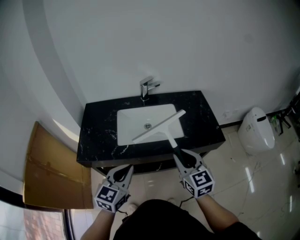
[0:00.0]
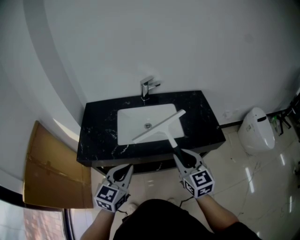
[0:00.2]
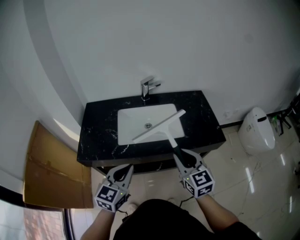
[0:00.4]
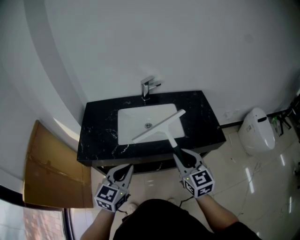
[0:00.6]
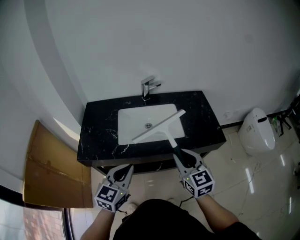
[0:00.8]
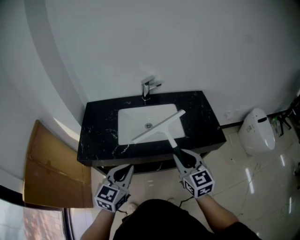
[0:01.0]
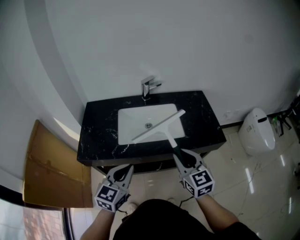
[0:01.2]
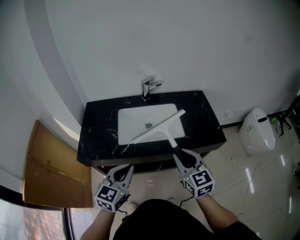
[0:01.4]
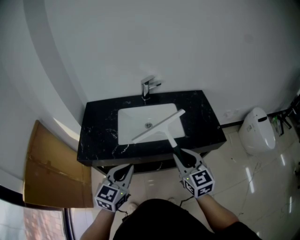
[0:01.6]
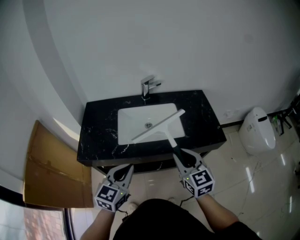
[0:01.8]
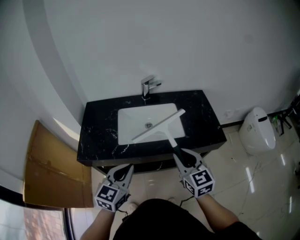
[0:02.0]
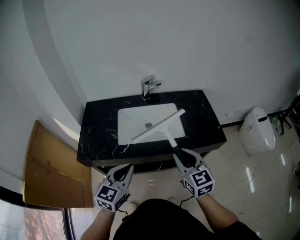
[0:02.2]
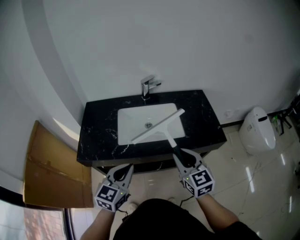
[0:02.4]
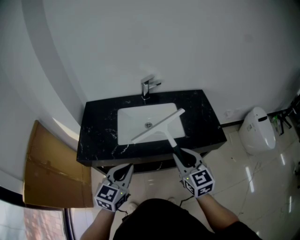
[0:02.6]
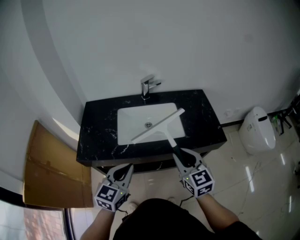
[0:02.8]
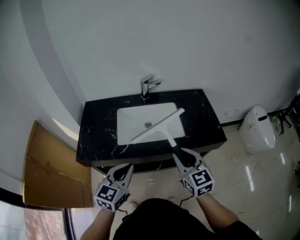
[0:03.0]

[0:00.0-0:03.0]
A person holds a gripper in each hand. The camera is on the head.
0:00.0 to 0:03.0: The two grippers keep their place.

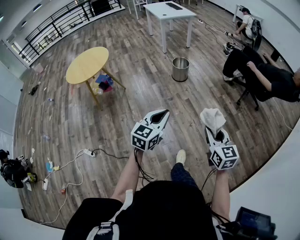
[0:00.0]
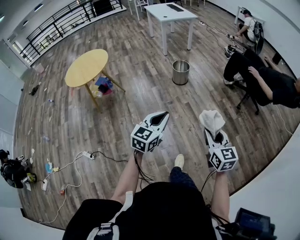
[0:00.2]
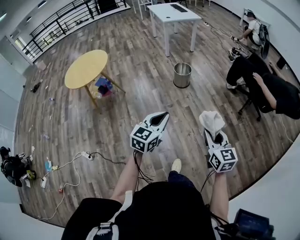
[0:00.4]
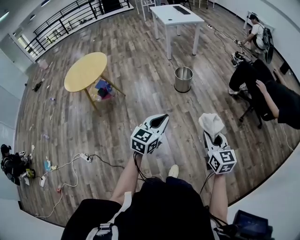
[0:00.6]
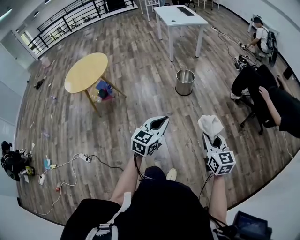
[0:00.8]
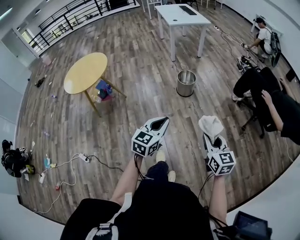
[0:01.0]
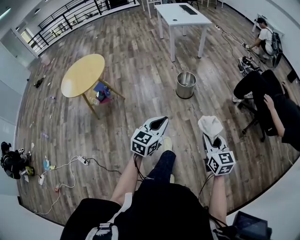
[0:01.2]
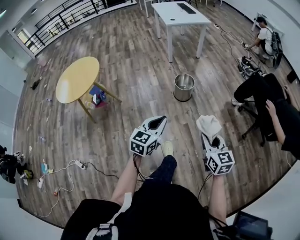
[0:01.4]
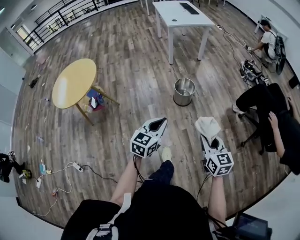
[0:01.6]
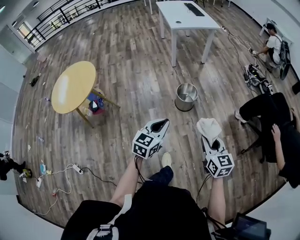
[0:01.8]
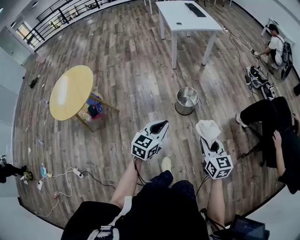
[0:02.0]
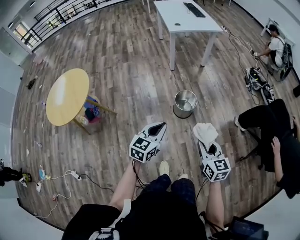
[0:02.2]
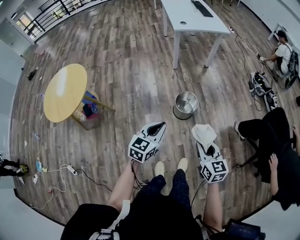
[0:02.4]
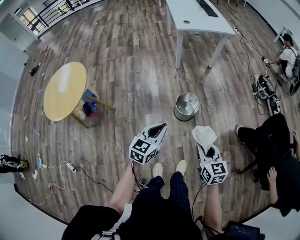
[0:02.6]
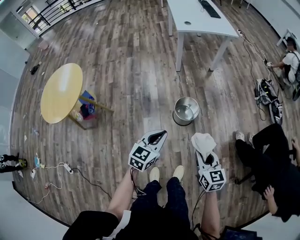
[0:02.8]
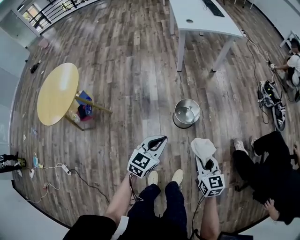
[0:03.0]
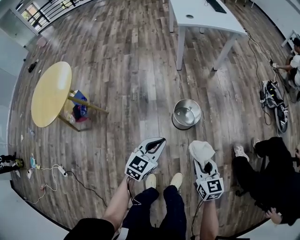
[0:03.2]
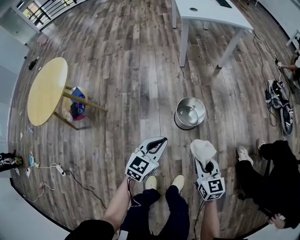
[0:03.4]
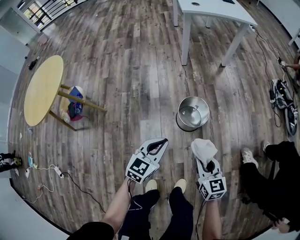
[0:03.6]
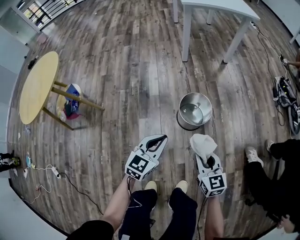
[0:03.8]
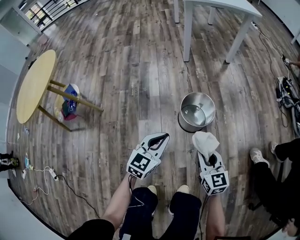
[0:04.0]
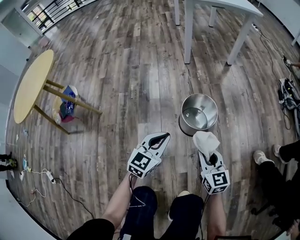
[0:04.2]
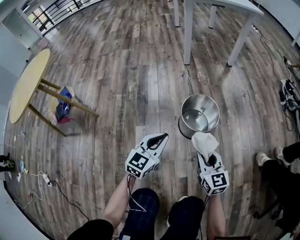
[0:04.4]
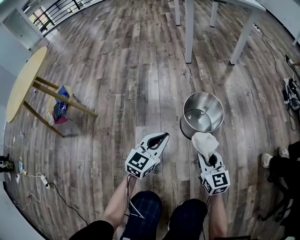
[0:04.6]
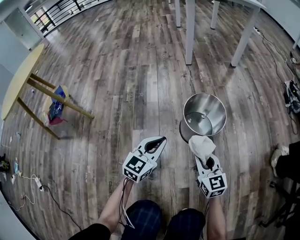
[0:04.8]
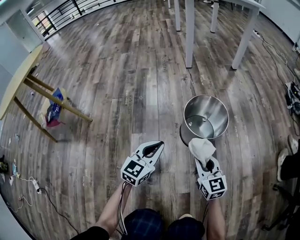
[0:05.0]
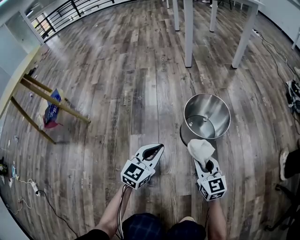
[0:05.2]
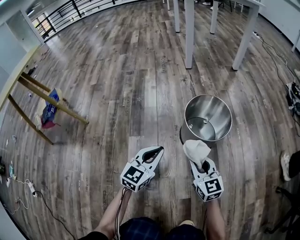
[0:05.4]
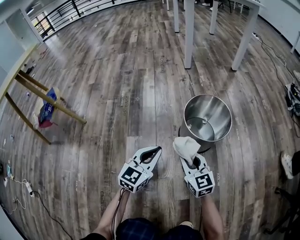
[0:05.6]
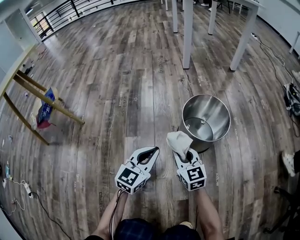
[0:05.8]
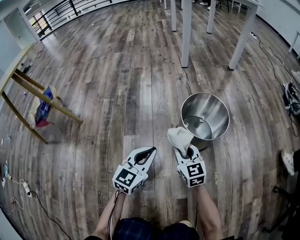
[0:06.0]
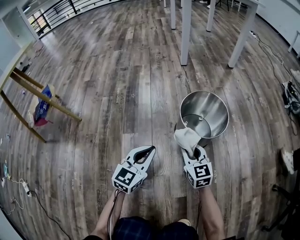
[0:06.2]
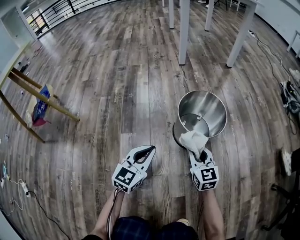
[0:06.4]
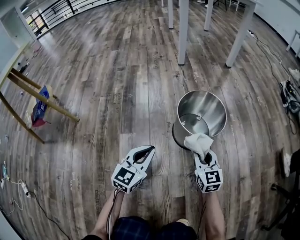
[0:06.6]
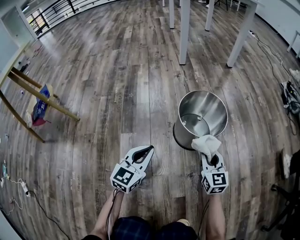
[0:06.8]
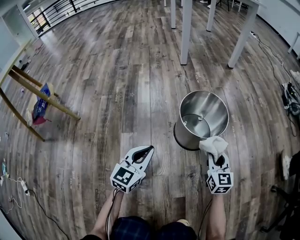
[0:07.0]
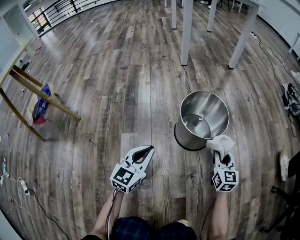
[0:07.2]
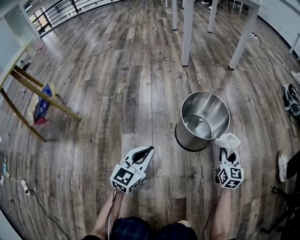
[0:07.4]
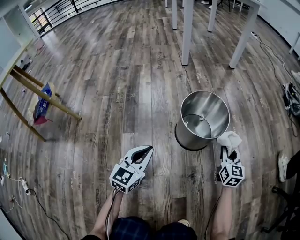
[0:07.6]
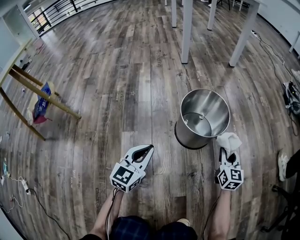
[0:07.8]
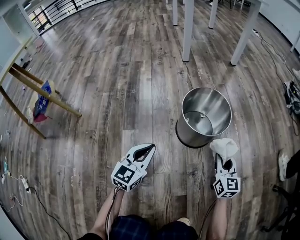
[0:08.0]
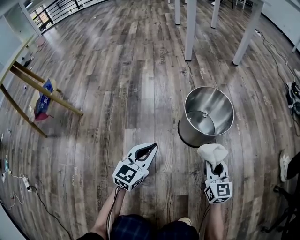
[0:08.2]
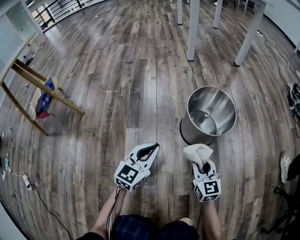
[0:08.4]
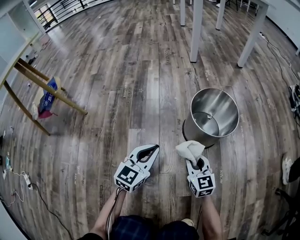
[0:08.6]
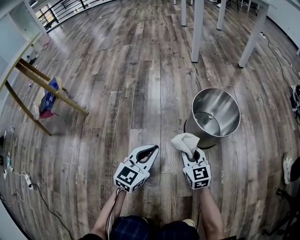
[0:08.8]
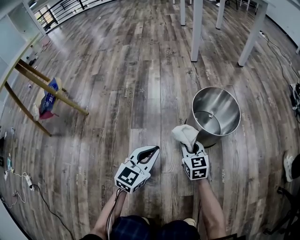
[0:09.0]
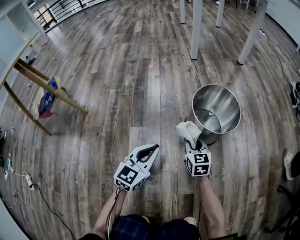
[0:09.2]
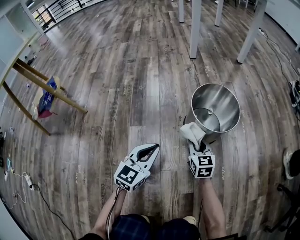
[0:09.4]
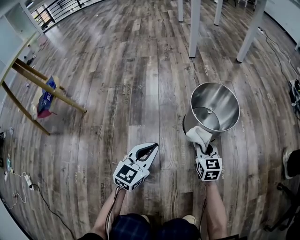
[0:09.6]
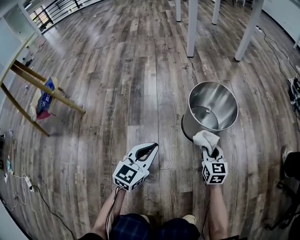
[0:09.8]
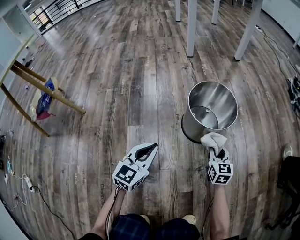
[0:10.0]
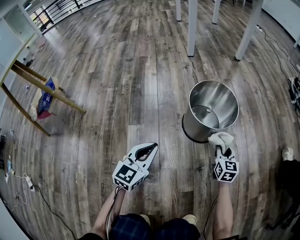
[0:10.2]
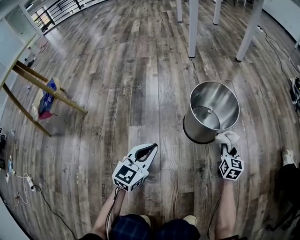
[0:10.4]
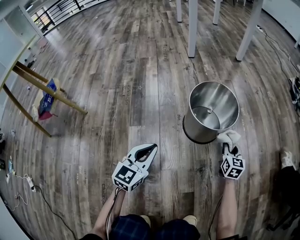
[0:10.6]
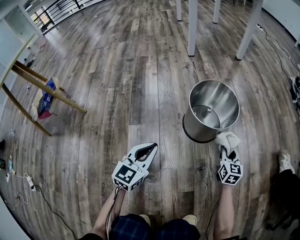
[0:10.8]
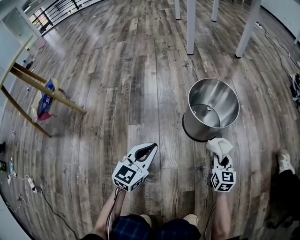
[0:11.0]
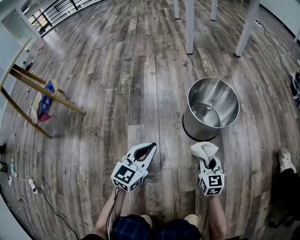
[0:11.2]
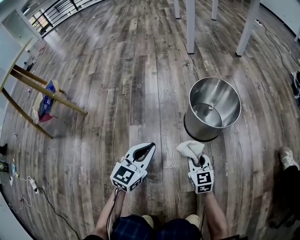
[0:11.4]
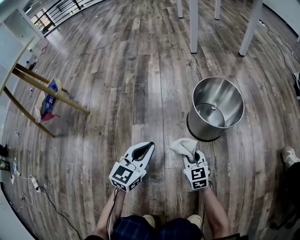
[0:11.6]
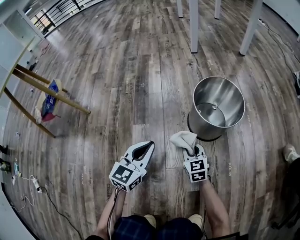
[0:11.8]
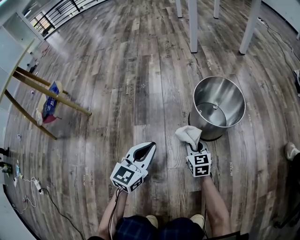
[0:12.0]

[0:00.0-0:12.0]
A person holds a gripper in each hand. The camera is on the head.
0:00.0 to 0:01.6: Both grippers are carried forward, roughly 40 cm.
0:01.6 to 0:03.0: The grippers both shift forward and downward by some 30 cm.
0:03.0 to 0:04.4: The two grippers go roughly 35 cm downward.
0:04.4 to 0:06.0: The left gripper travels downward by some 15 cm; the right gripper moves downward, to the left and forward, roughly 25 cm.
0:06.0 to 0:07.6: The right gripper heads to the right, covering some 25 cm, and changes its angle by some 30 degrees.
0:07.6 to 0:09.0: The right gripper moves to the left, some 25 cm, and turns by about 30 degrees.
0:09.0 to 0:10.4: The right gripper goes some 25 cm to the right, and turns by some 30 degrees.
0:10.4 to 0:12.0: The right gripper travels to the left by about 20 cm, and swivels some 20 degrees.

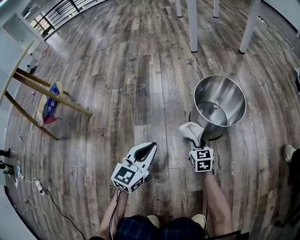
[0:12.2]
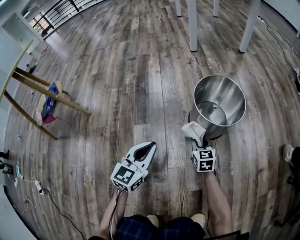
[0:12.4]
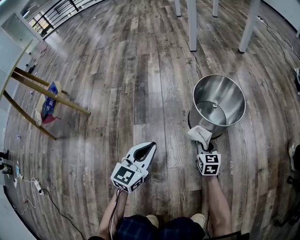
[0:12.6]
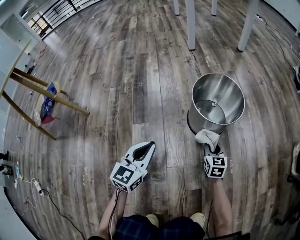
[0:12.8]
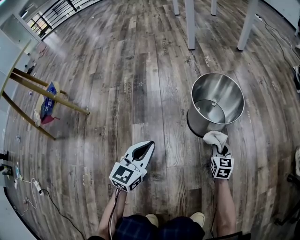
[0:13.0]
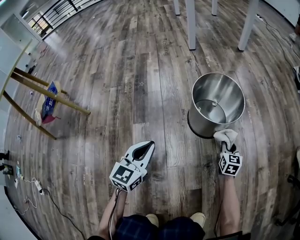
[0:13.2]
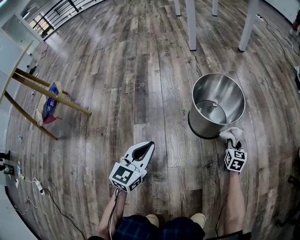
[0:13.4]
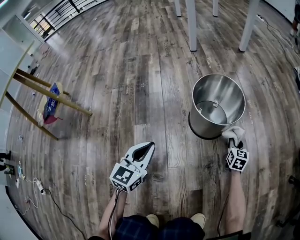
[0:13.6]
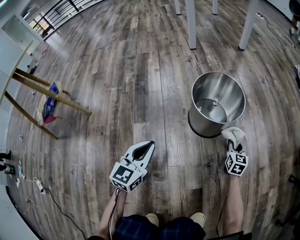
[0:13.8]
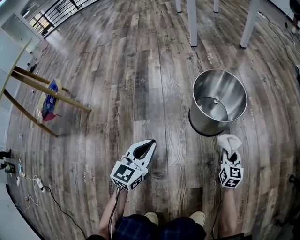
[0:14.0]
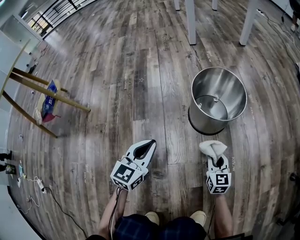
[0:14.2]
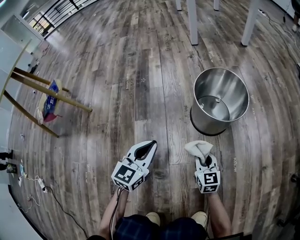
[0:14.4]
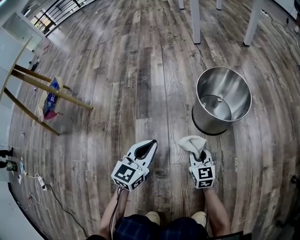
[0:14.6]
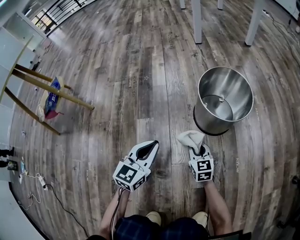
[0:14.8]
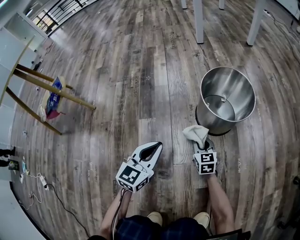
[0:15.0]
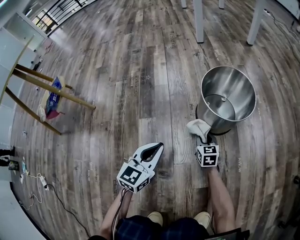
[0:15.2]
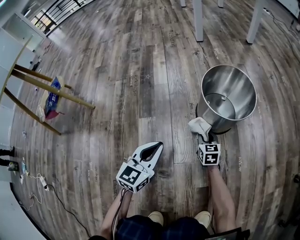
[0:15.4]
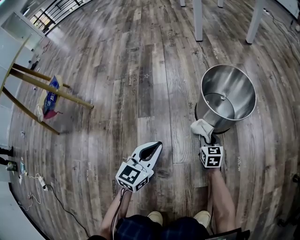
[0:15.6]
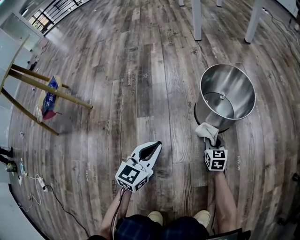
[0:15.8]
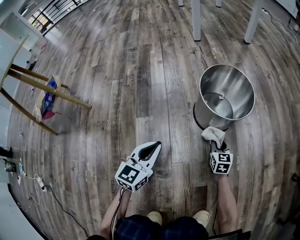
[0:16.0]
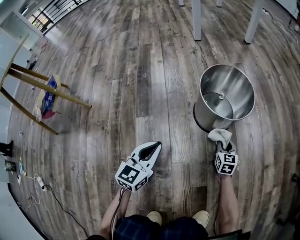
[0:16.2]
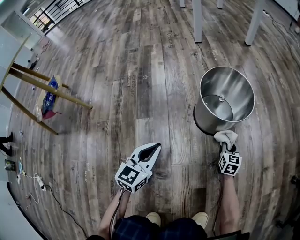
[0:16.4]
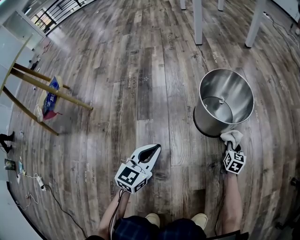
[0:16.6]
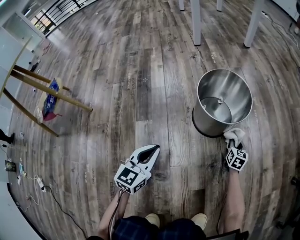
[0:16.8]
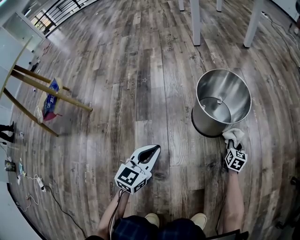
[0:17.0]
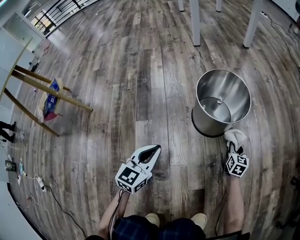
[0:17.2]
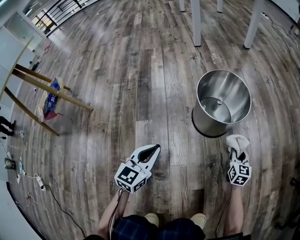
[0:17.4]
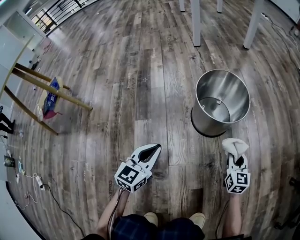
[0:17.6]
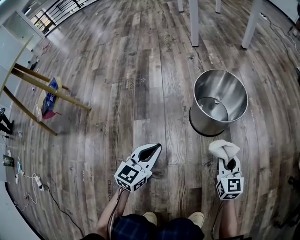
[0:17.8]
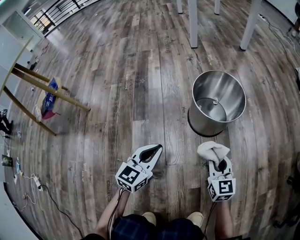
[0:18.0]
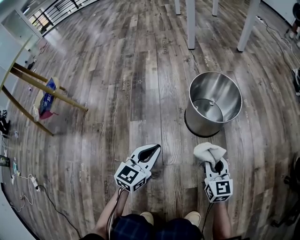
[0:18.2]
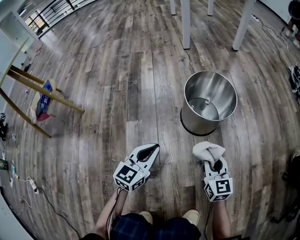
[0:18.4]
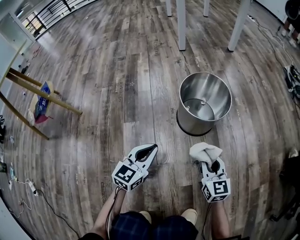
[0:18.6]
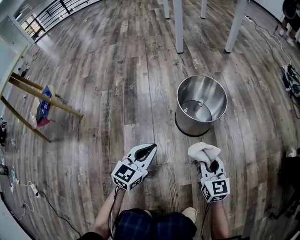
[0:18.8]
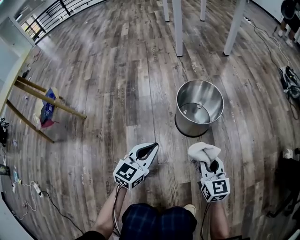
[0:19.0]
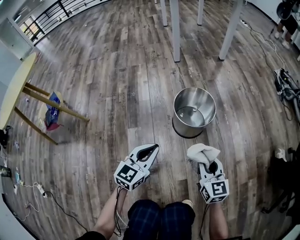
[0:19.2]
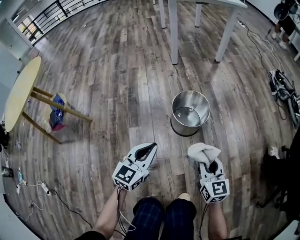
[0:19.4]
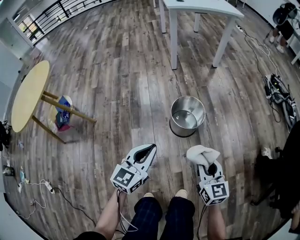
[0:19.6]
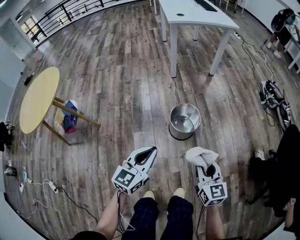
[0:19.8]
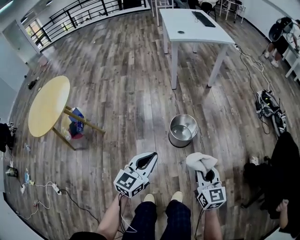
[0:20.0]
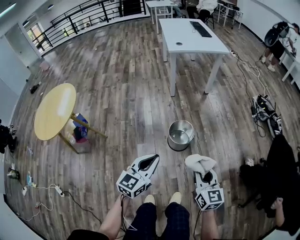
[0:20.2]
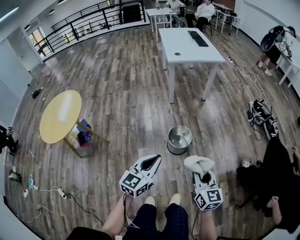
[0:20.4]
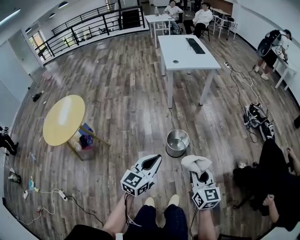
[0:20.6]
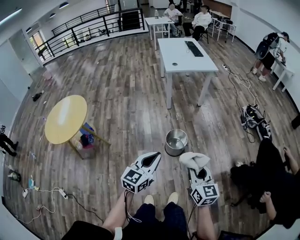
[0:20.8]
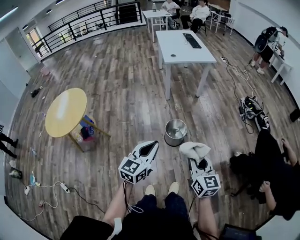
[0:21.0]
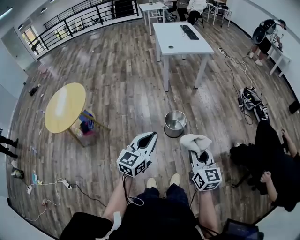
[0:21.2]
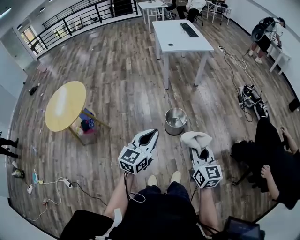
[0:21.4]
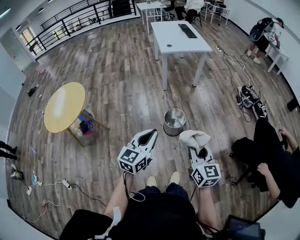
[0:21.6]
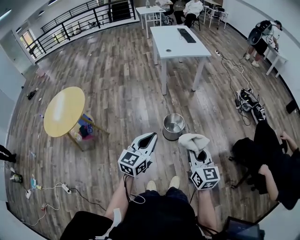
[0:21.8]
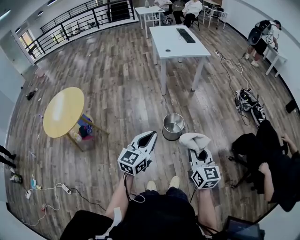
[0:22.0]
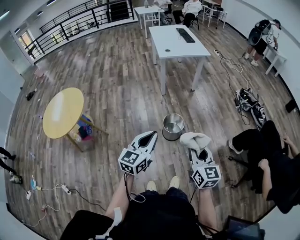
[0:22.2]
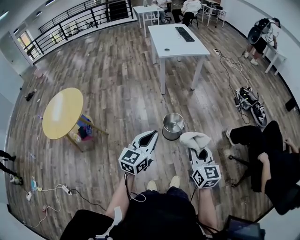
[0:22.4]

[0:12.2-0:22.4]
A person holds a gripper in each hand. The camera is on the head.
0:12.2 to 0:13.6: The right gripper moves to the right, roughly 25 cm, and swivels some 20 degrees.
0:13.6 to 0:15.2: The right gripper is displaced to the left by approximately 20 cm, and turns by some 20 degrees.
0:15.2 to 0:16.6: The right gripper goes approximately 20 cm to the right, and changes its angle by some 20 degrees.
0:16.6 to 0:18.0: The right gripper heads upward, backward and to the left, covering about 20 cm, and turns by approximately 30 degrees.
0:18.0 to 0:19.4: The two grippers go approximately 25 cm upward.
0:19.4 to 0:21.0: Both grippers travel together upward, approximately 50 cm.
0:21.0 to 0:22.4: The grippers move only a little.
